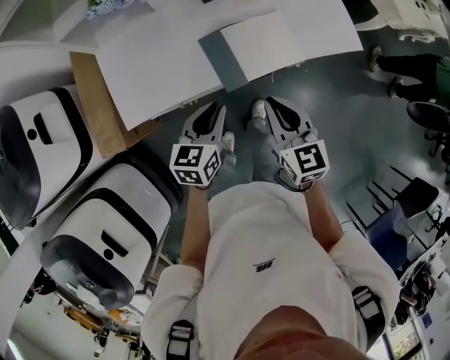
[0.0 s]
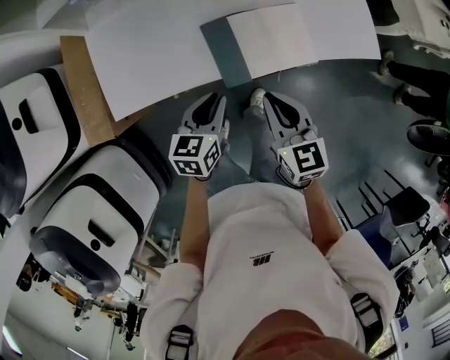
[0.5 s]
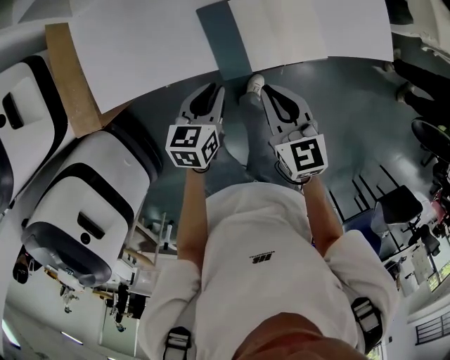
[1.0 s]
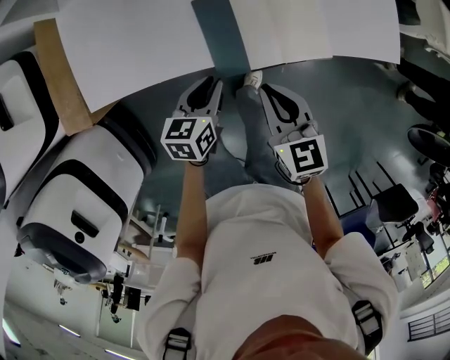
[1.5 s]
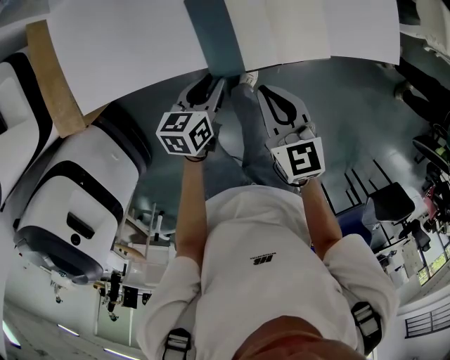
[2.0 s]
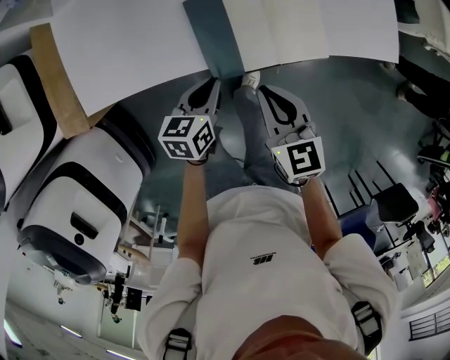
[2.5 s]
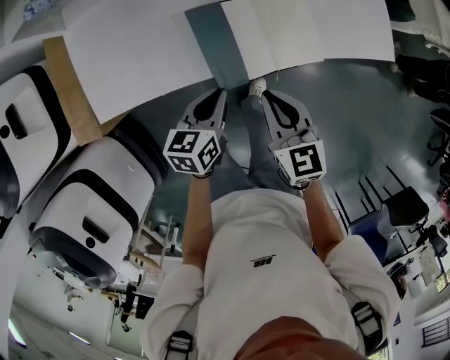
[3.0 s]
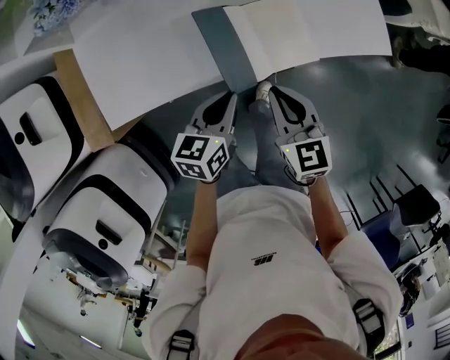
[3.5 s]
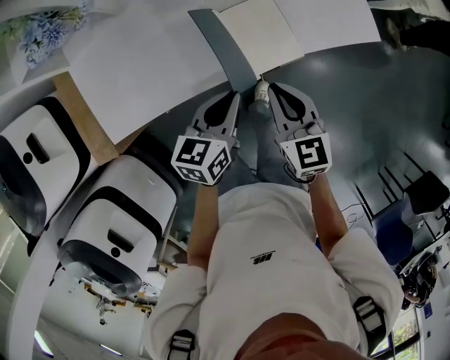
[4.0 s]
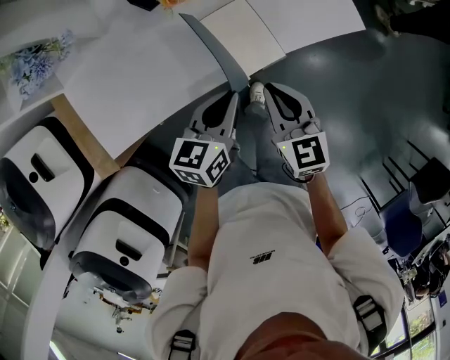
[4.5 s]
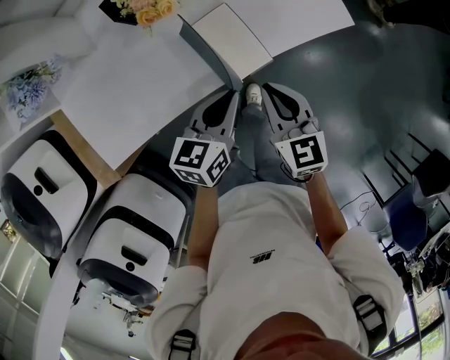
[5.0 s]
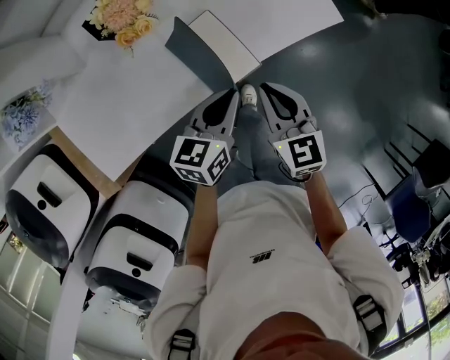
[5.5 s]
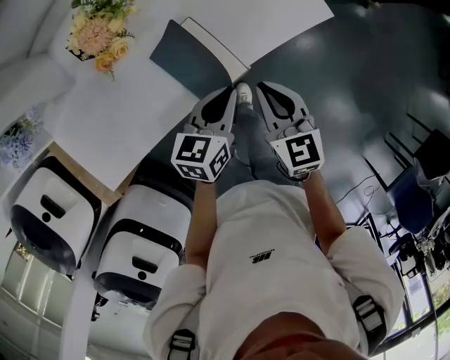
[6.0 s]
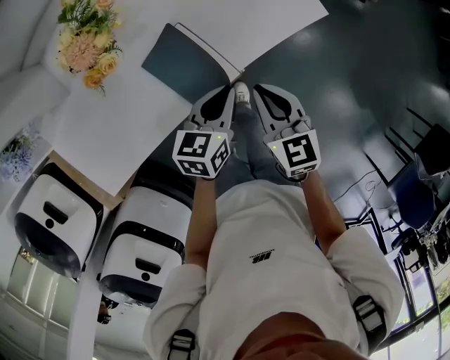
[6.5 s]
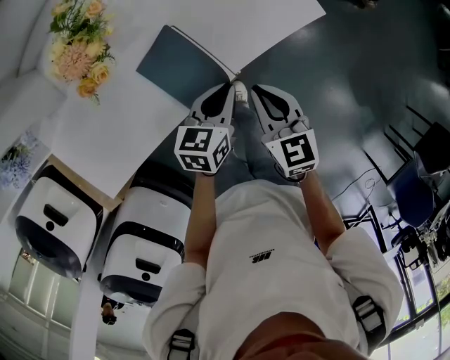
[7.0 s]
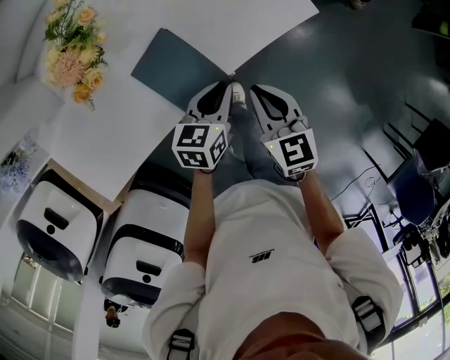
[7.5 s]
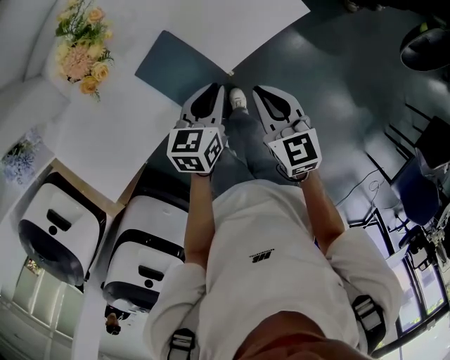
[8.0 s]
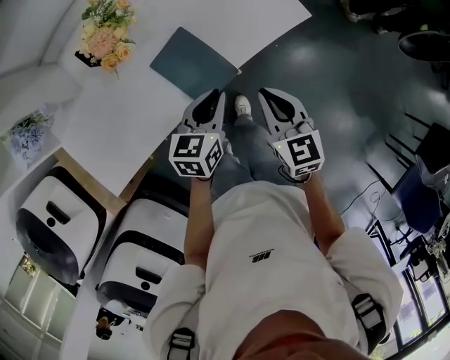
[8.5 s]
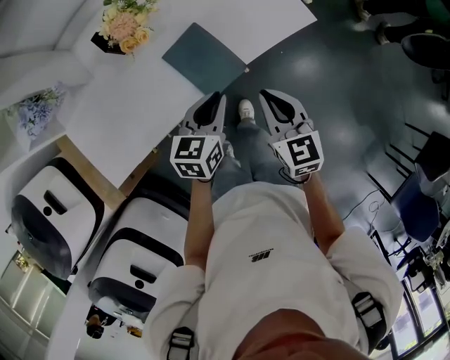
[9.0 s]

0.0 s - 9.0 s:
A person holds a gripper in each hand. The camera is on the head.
0.0 s - 2.0 s: The grippers both shift downward by approximately 15 cm. The left gripper swivels approximately 20 degrees.
2.0 s - 4.5 s: The right gripper heads to the right and upward, covering approximately 15 cm. Meanwhile the left gripper moves upward and to the right, roughly 20 cm, and changes its angle by roughly 20 degrees.
4.5 s - 7.0 s: The grippers both shift to the right, forward and downward by approximately 15 cm.
7.0 s - 9.0 s: The right gripper is displaced upward and backward by approximately 10 cm. The left gripper shifts roughly 15 cm upward, backward and to the left.

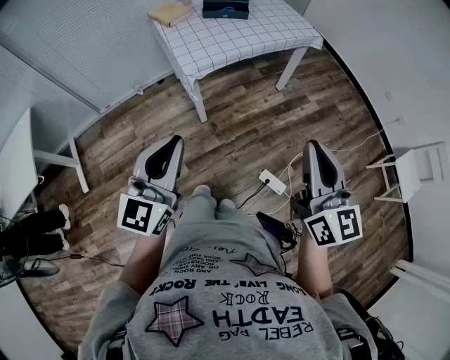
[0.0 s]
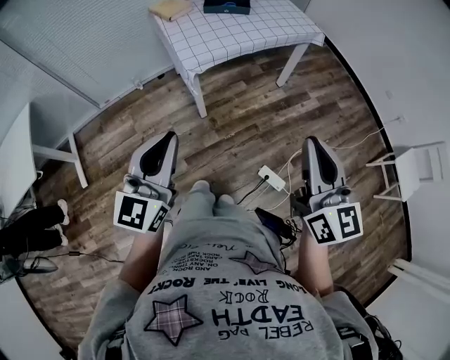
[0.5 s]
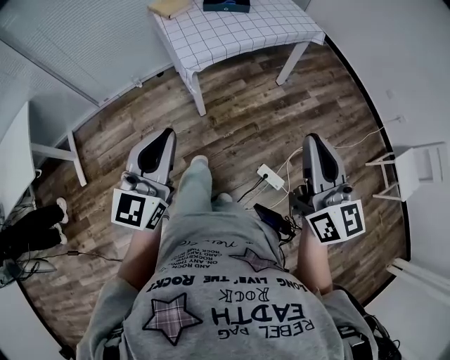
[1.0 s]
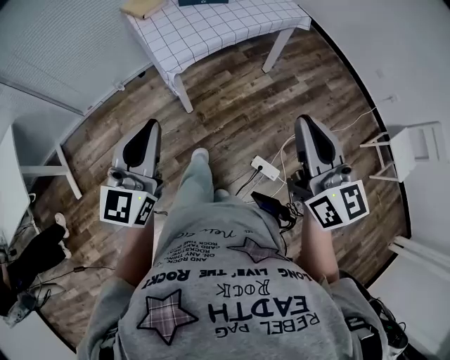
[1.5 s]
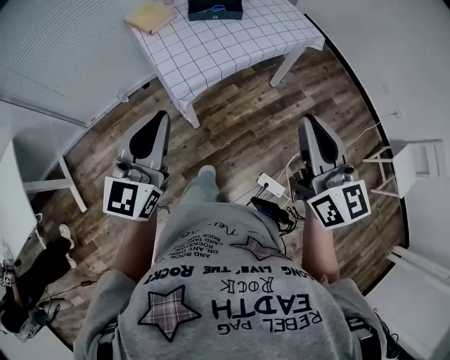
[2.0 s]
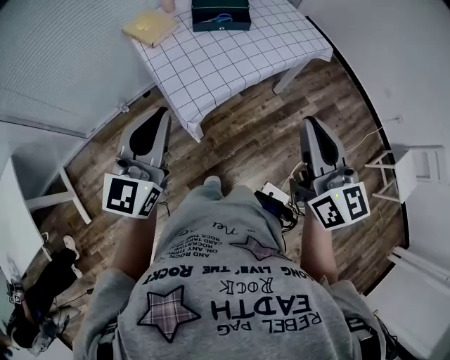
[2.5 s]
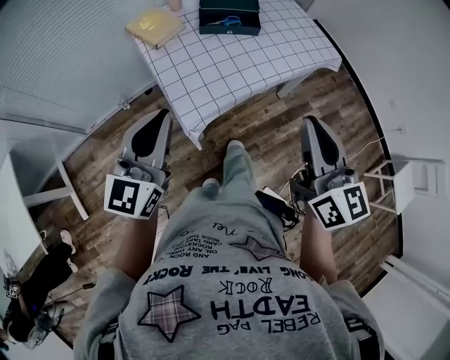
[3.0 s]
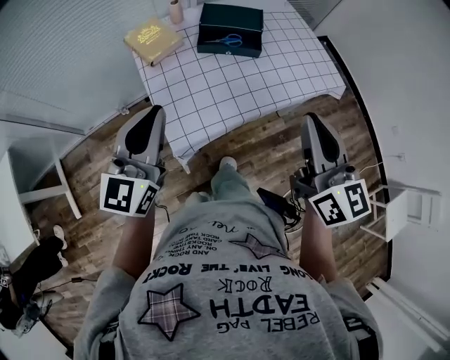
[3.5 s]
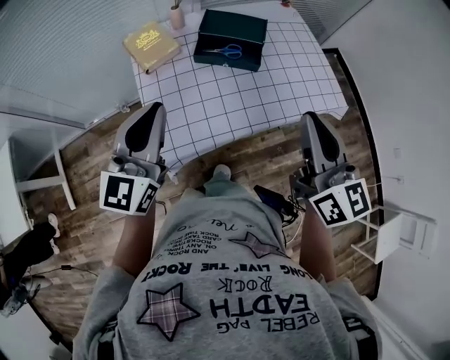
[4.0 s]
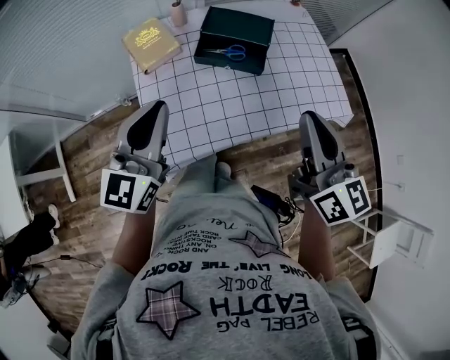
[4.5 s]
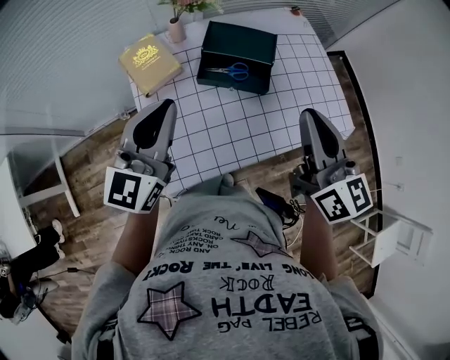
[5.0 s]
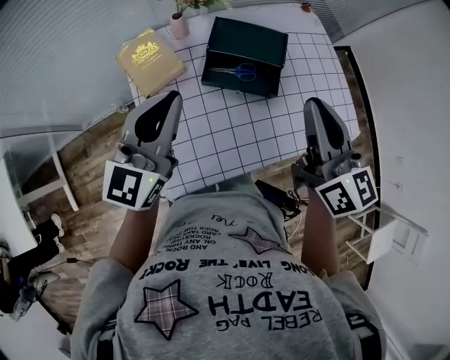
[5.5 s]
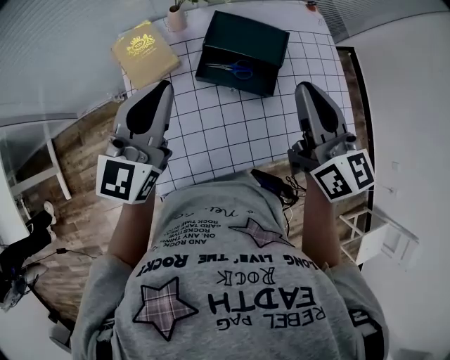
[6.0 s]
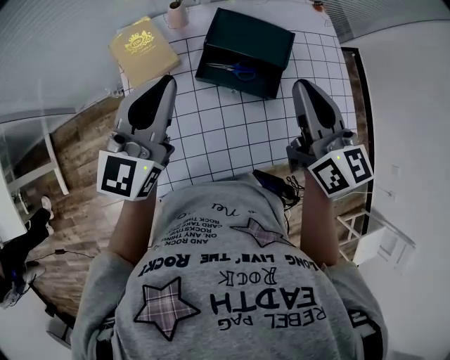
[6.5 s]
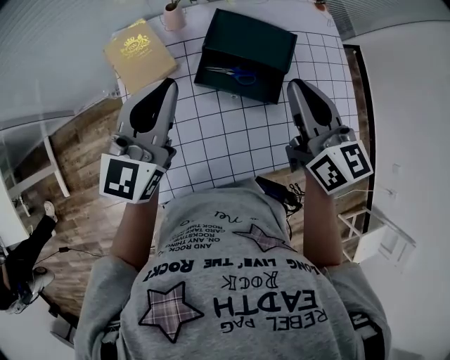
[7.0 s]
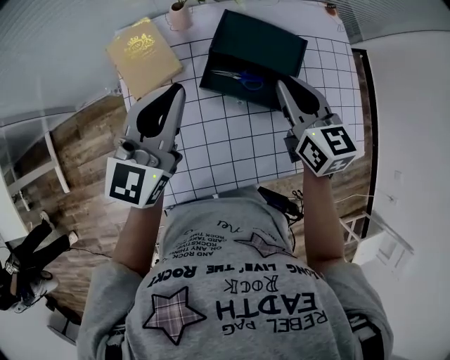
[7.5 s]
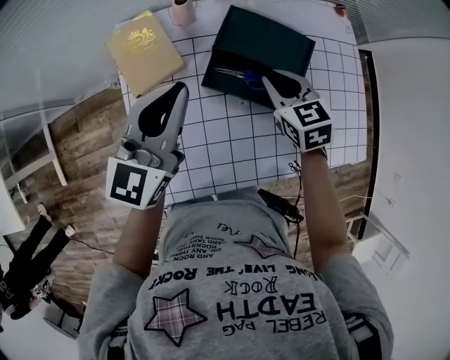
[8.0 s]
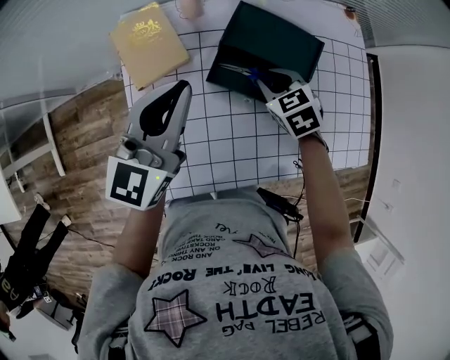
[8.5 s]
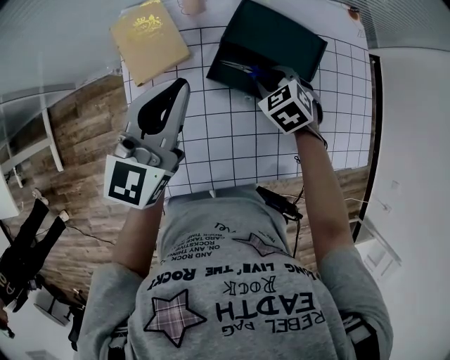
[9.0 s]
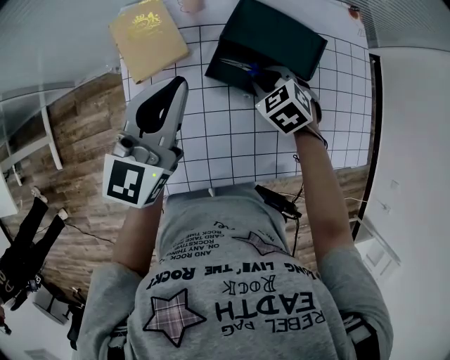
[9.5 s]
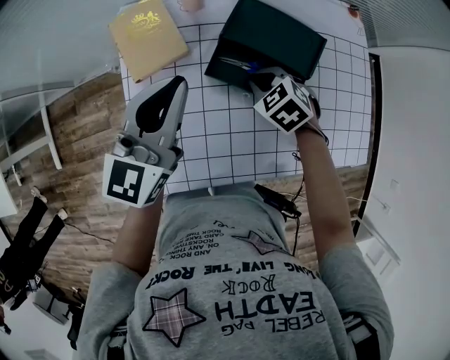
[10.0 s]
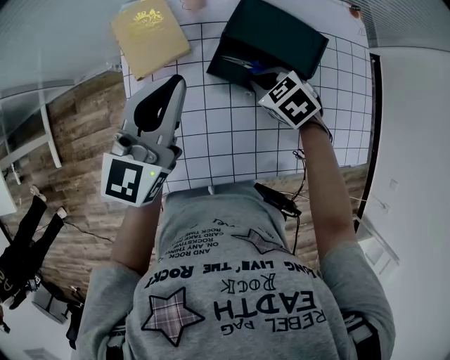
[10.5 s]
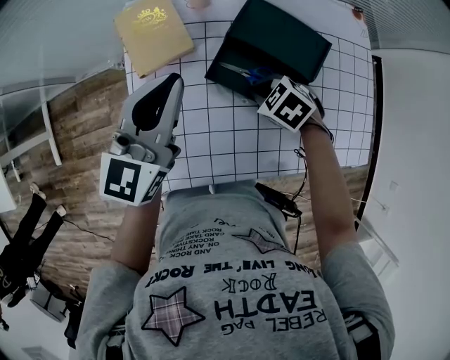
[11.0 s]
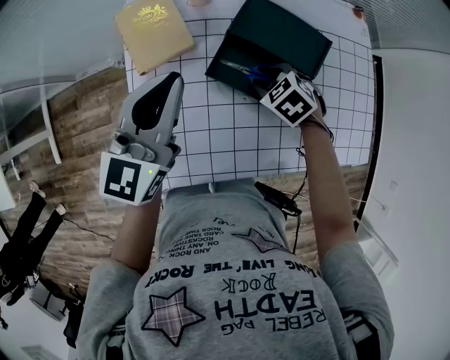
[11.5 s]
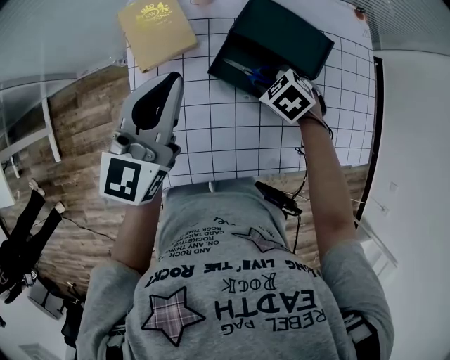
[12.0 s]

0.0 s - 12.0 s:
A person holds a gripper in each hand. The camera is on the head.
0.0 s - 2.0 s: The grippers both shift forward by some 20 cm.
2.0 s - 4.0 s: The grippers both shift forward by about 30 cm.
4.0 s - 6.0 s: Both grippers move forward, some 20 cm.
6.0 s - 8.0 s: The left gripper shifts approximately 10 cm downward and forward. Meanwhile the right gripper moves downward and forward, some 25 cm, and tips its fingers downward by about 30 degrees.
8.0 s - 10.0 s: The right gripper moves downward, about 10 cm, and turns by roughly 30 degrees.
10.0 s - 12.0 s: The grippers move only a little.

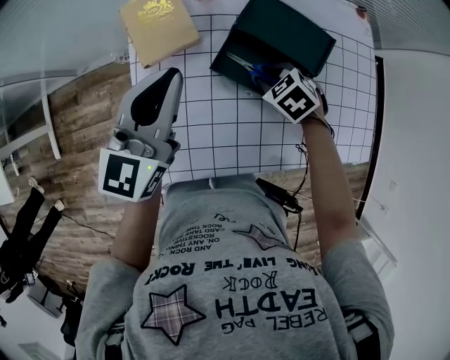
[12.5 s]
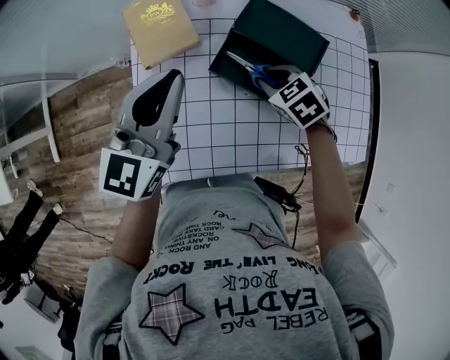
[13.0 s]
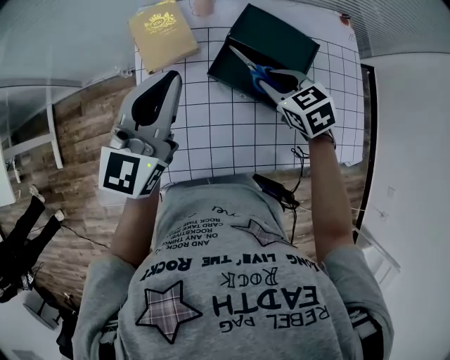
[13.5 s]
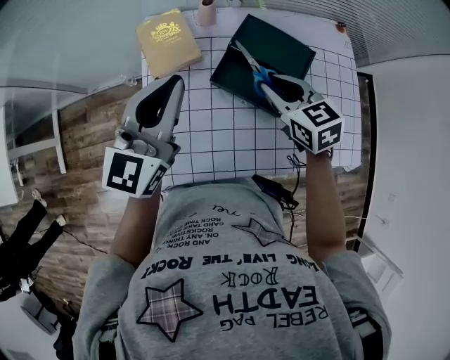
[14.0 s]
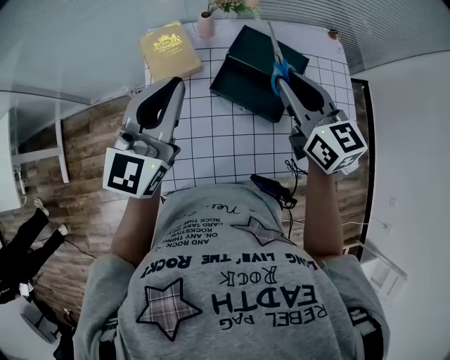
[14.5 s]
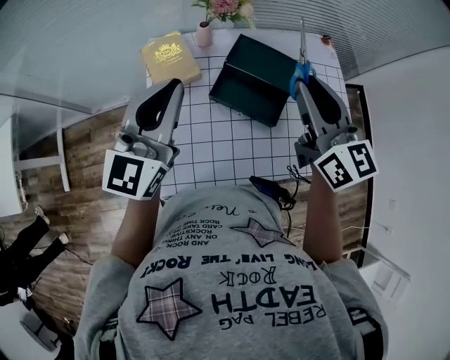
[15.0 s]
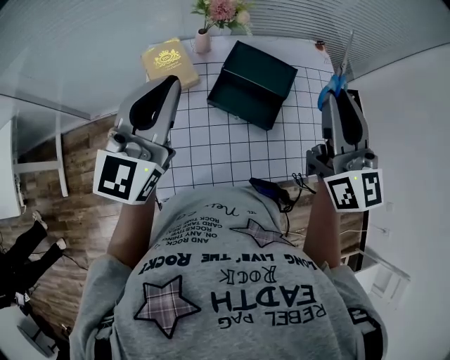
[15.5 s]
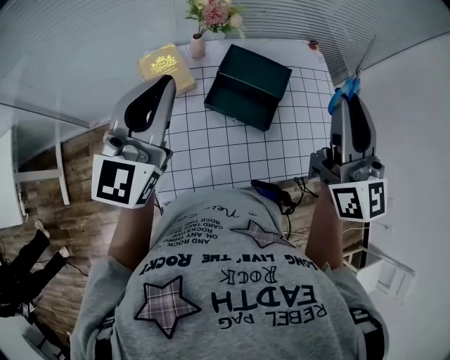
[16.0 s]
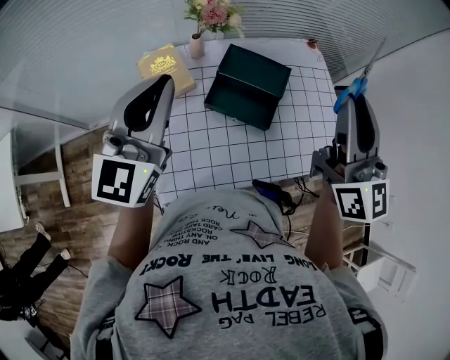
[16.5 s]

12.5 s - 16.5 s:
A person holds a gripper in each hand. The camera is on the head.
12.5 s - 14.5 s: The right gripper is displaced upward by roughly 25 cm, and tilts its fingers some 50 degrees upward; the left gripper shifts roughly 10 cm upward.
14.5 s - 16.5 s: The right gripper is displaced upward, backward and to the right by some 20 cm, and swivels some 40 degrees. The left gripper heads upward, covering roughly 10 cm.

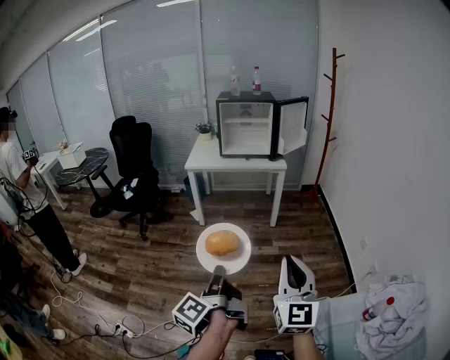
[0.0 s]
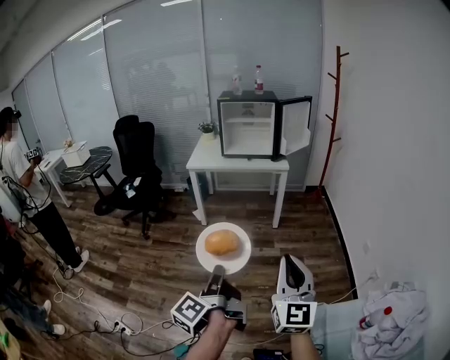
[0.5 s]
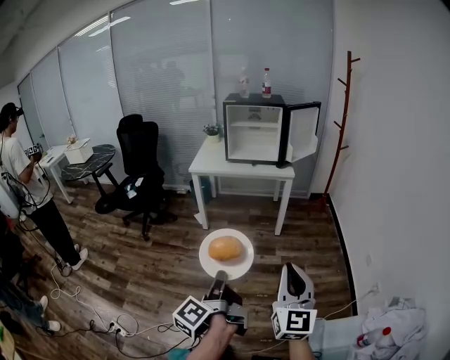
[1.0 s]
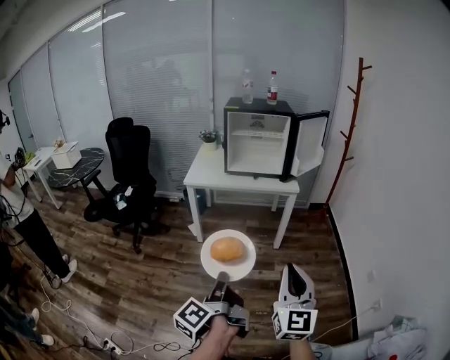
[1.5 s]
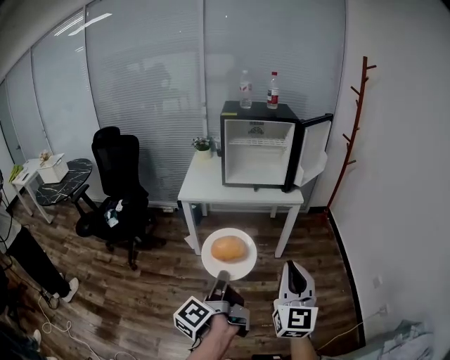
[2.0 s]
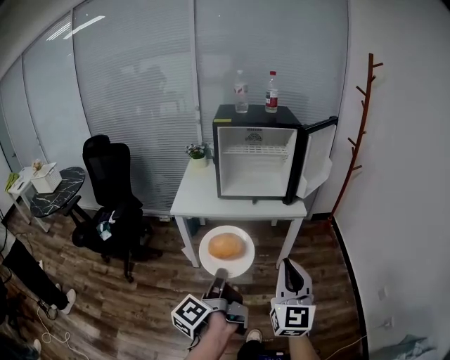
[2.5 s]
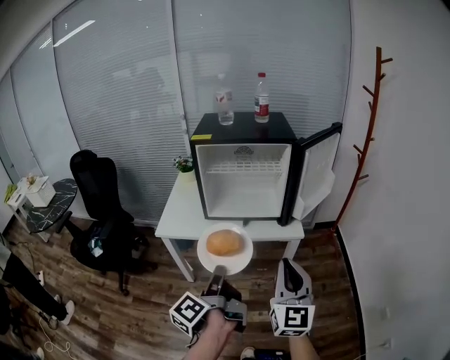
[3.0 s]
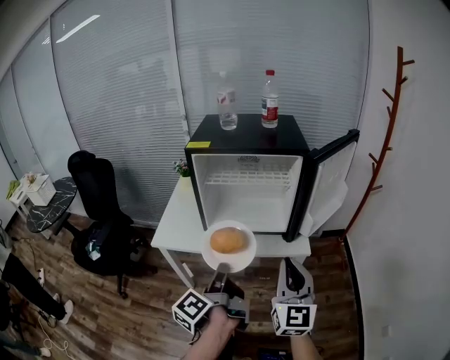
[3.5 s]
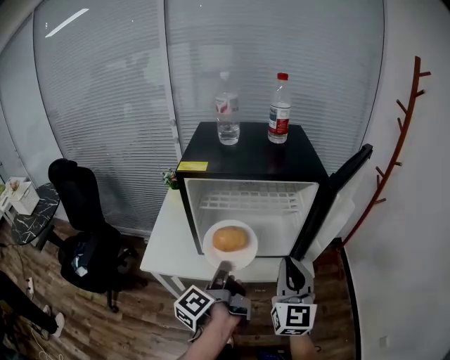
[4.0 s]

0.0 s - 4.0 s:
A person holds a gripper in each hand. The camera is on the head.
0.0 s - 2.0 s: The right gripper ends up approximately 35 cm from where it was.
2.0 s - 4.0 s: The right gripper shifts by roughly 50 cm.
